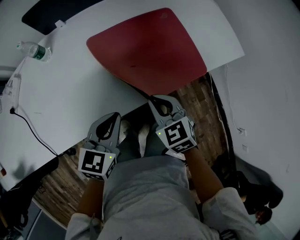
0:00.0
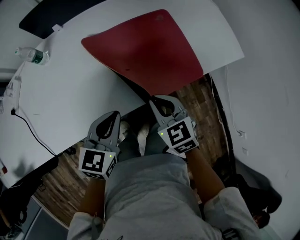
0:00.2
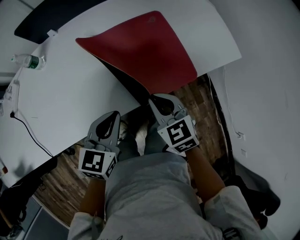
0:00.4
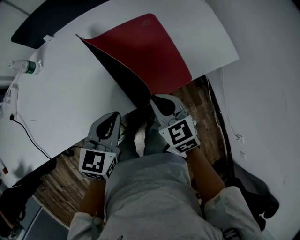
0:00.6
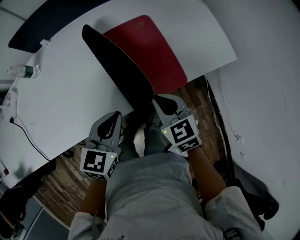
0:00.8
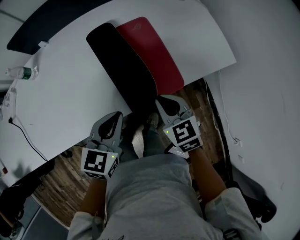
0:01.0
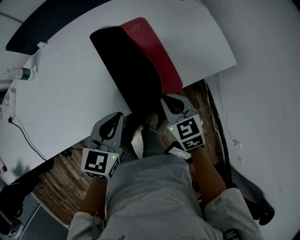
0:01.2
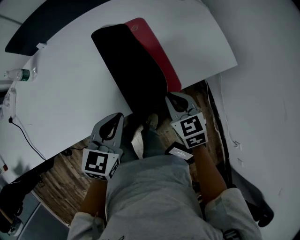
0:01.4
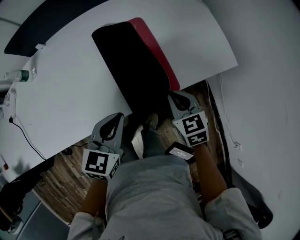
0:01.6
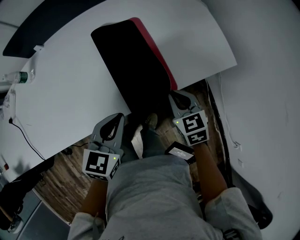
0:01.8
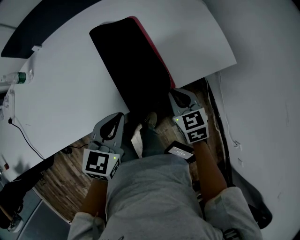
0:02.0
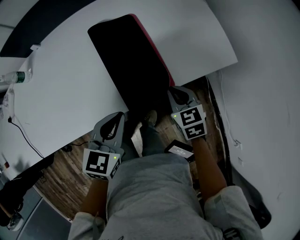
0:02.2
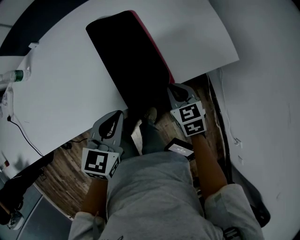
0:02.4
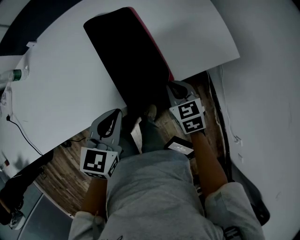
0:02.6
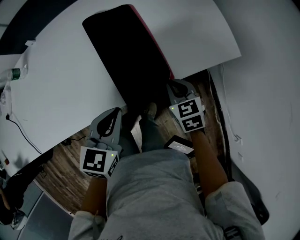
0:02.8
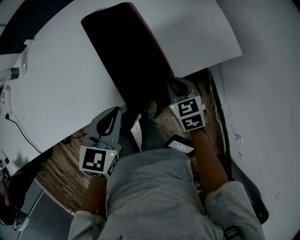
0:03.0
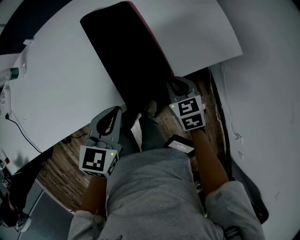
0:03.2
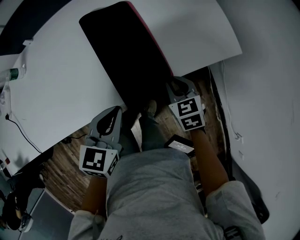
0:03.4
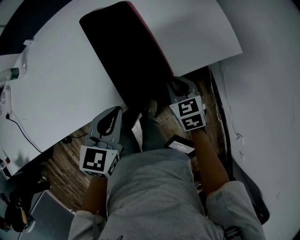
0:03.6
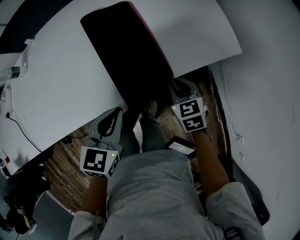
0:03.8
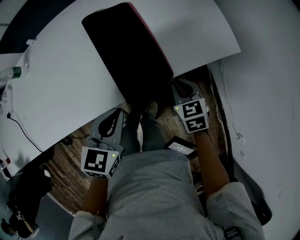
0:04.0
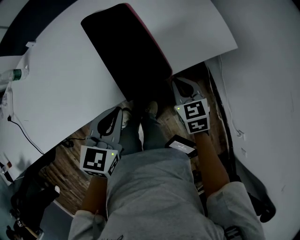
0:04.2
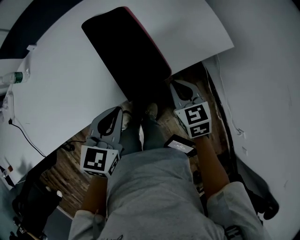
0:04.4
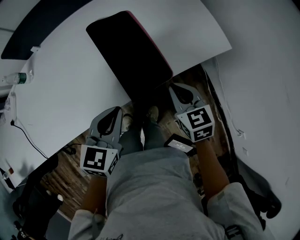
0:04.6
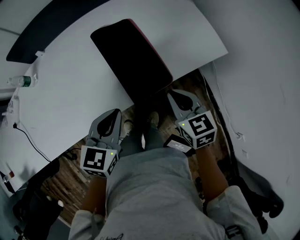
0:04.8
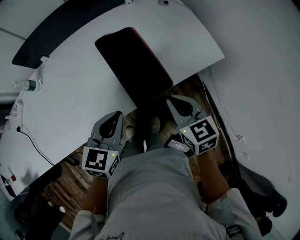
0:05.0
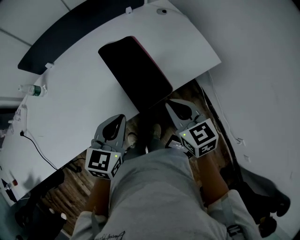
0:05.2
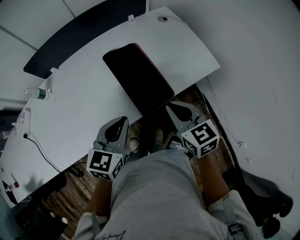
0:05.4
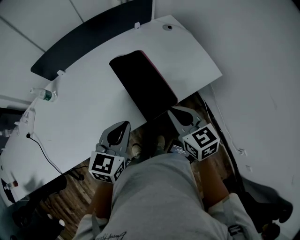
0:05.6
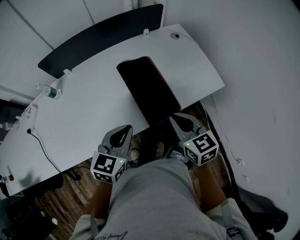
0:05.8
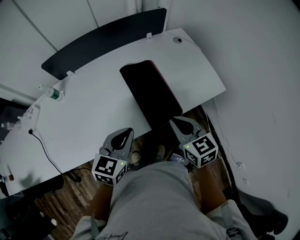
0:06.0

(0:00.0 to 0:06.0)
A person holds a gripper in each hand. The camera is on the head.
0:00.0 - 0:01.6: Both grippers travel together to the right, approximately 20 cm.
0:01.6 - 0:03.0: The right gripper goes roughly 5 cm downward.
0:03.0 - 0:04.4: The right gripper is displaced upward by about 5 cm.
0:04.4 - 0:06.0: The right gripper is displaced upward and to the left by roughly 20 cm. Meanwhile the left gripper moves upward and to the left, some 10 cm.

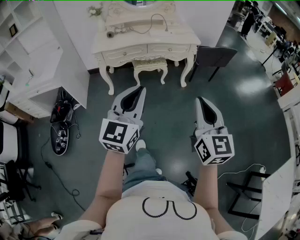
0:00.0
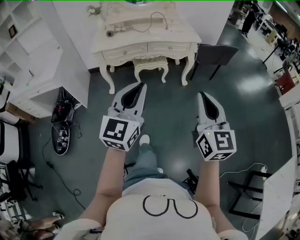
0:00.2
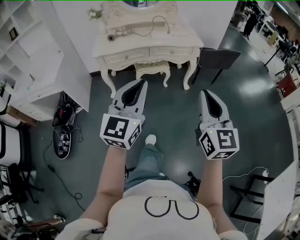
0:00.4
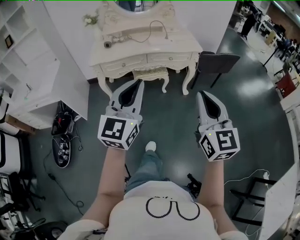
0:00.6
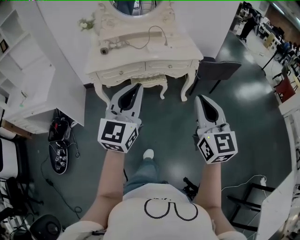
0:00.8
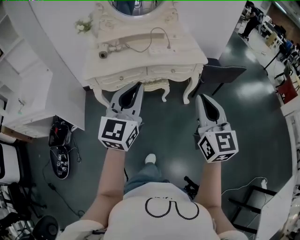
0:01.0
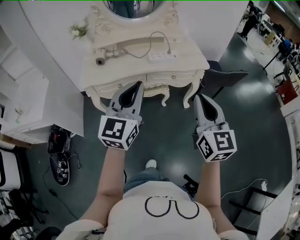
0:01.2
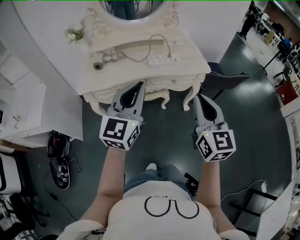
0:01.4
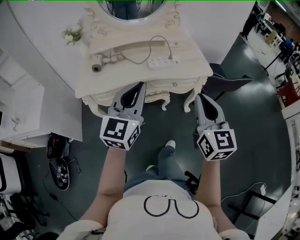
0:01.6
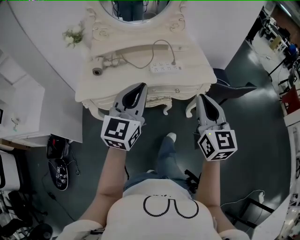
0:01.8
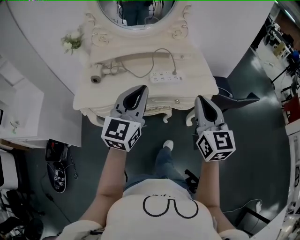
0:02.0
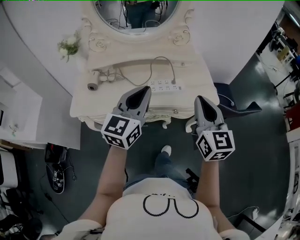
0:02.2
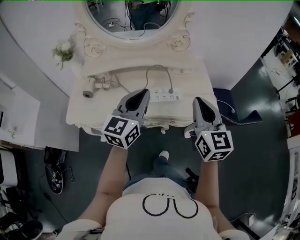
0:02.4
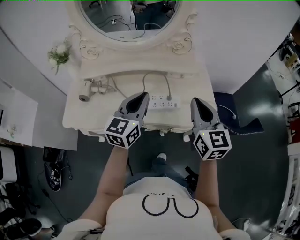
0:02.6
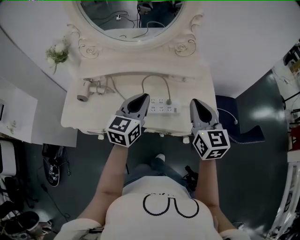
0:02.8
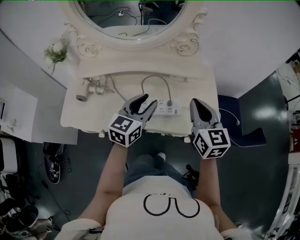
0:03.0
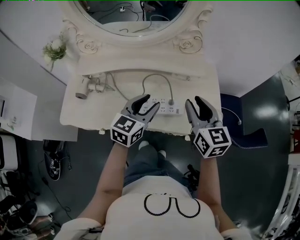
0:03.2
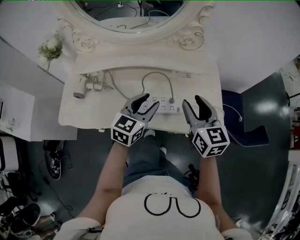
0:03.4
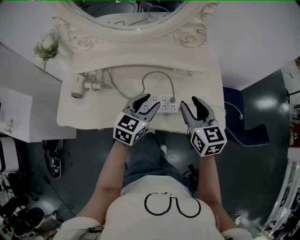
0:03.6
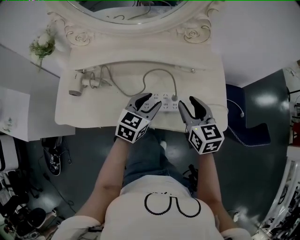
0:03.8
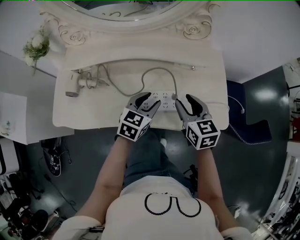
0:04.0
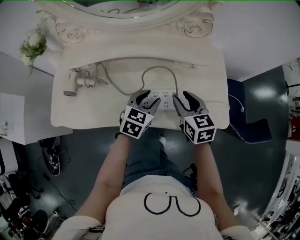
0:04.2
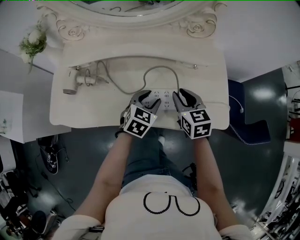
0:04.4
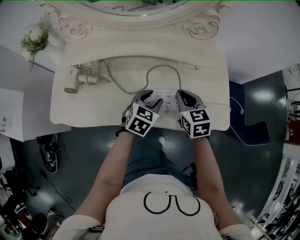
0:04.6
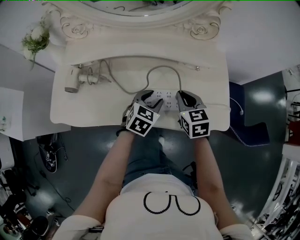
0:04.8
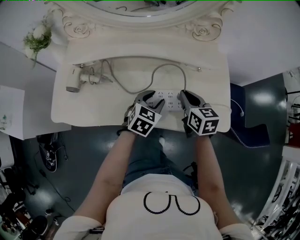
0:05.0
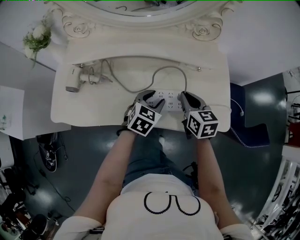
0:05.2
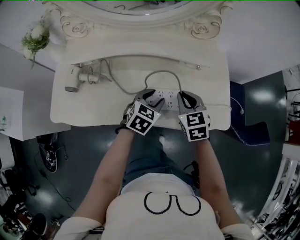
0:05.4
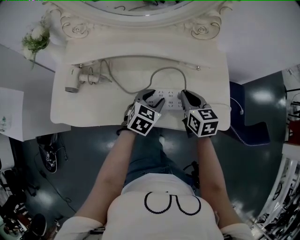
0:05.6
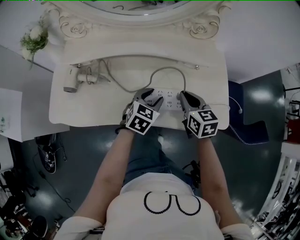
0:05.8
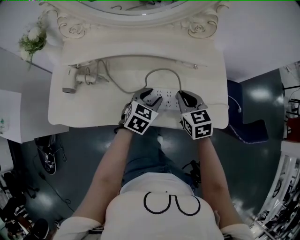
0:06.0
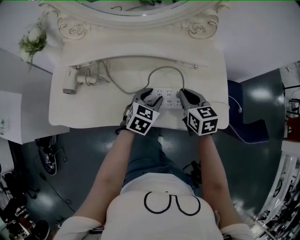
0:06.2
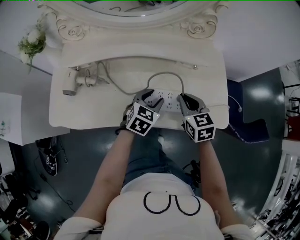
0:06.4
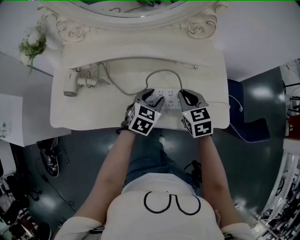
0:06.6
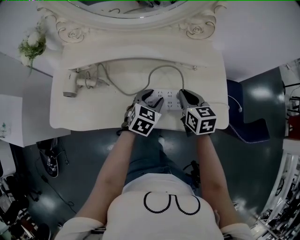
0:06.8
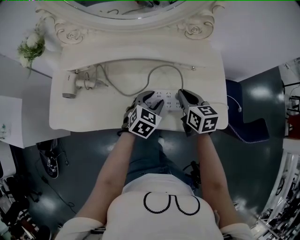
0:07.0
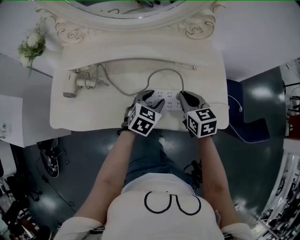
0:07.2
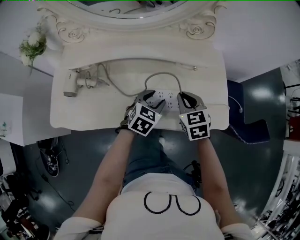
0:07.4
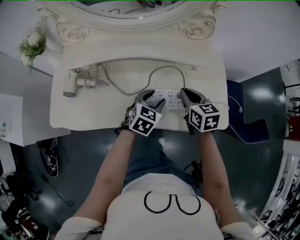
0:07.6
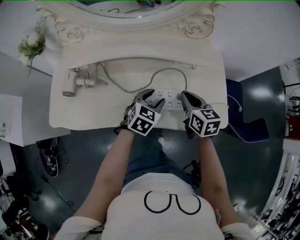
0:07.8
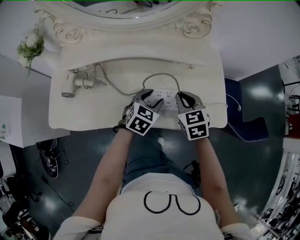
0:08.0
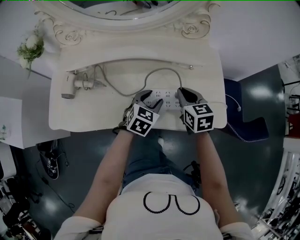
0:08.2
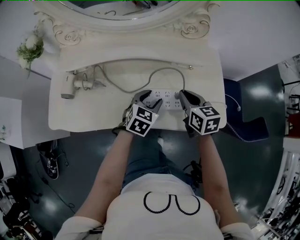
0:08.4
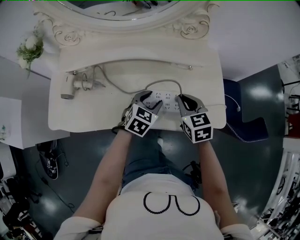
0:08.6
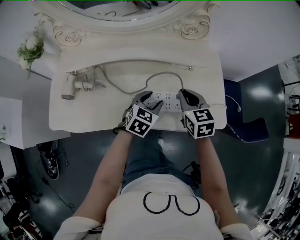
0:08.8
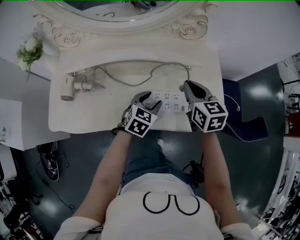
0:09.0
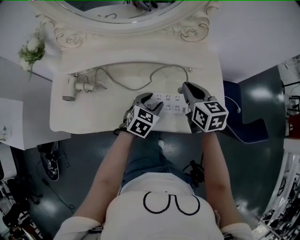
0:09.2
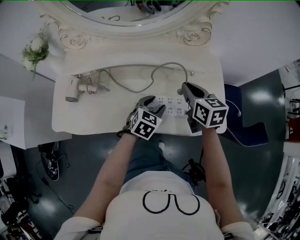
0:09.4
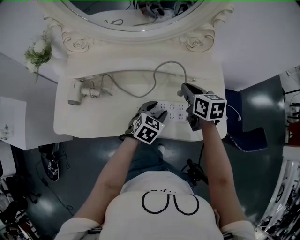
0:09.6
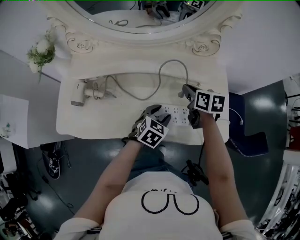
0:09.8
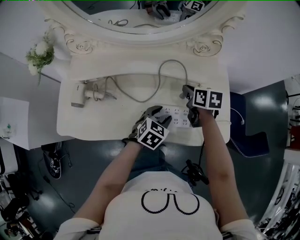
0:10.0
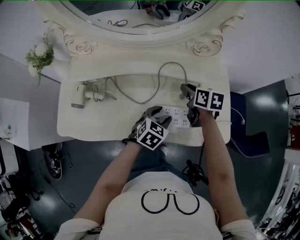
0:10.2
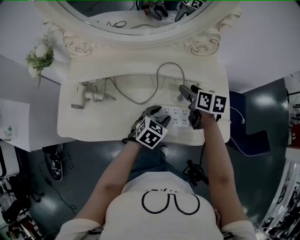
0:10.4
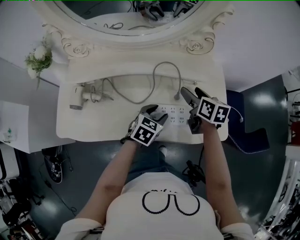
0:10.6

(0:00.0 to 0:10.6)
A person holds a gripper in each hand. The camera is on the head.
0:00.0 - 0:01.6: The two grippers travel together, forward, approximately 50 cm.
0:01.6 - 0:03.0: Both grippers travel together forward, about 40 cm. The left gripper swivels approximately 20 degrees, and opens.
0:03.0 - 0:04.6: The left gripper shifts some 20 cm downward, and rotates approximately 30 degrees. The right gripper moves downward and to the left, roughly 20 cm, swivels some 20 degrees, and opens, then closes once more.
0:04.6 - 0:07.6: The grippers move only a little.
0:07.6 - 0:09.0: The right gripper shifts approximately 5 cm upward.
0:09.0 - 0:10.6: The right gripper changes its angle by roughly 20 degrees, and opens up.

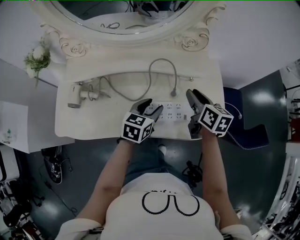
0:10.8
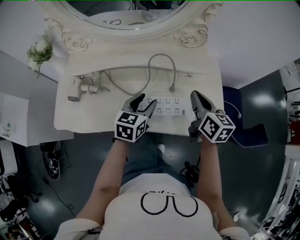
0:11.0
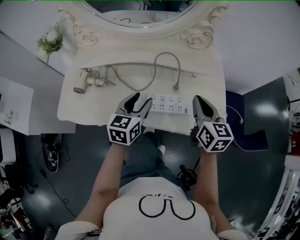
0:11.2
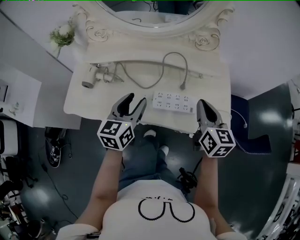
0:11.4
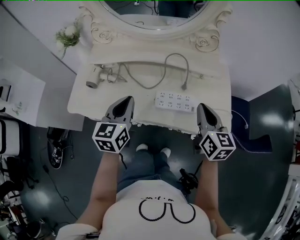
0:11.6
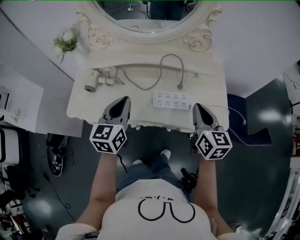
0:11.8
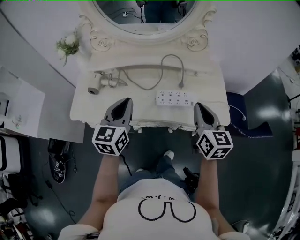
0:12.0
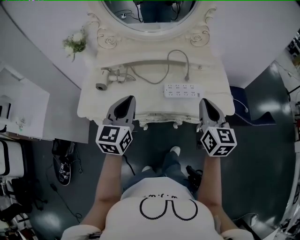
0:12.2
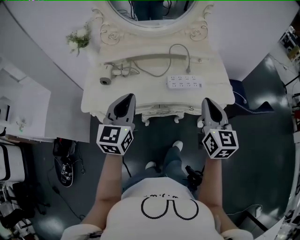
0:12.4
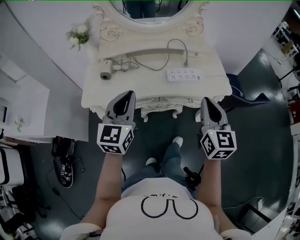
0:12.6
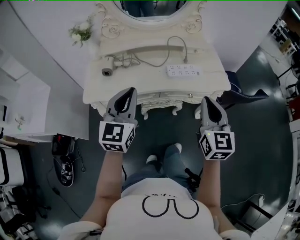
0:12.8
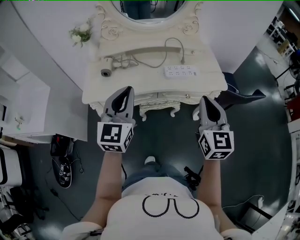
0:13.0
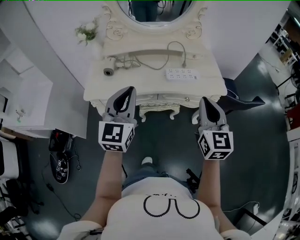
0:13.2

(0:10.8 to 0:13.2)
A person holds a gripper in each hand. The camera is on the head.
0:10.8 - 0:12.0: The left gripper heads upward, to the left and backward, covering about 25 cm, changes its angle by roughly 30 degrees, and closes up, while the right gripper shifts about 20 cm backward and upward, changes its angle by roughly 20 degrees, and closes up.
0:12.0 - 0:13.2: Both grippers move backward and upward, some 25 cm. The right gripper turns by about 20 degrees.

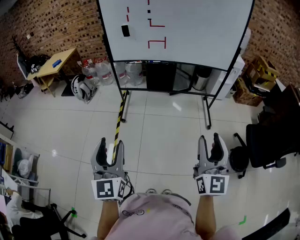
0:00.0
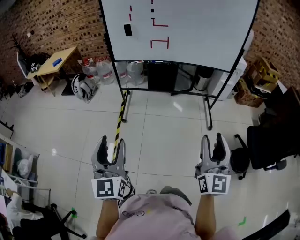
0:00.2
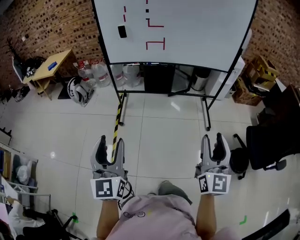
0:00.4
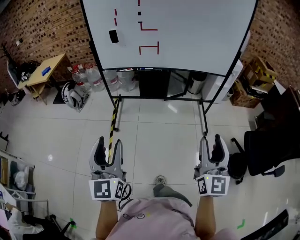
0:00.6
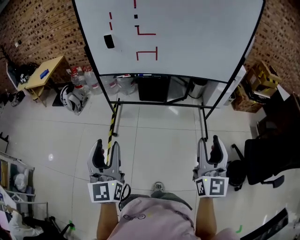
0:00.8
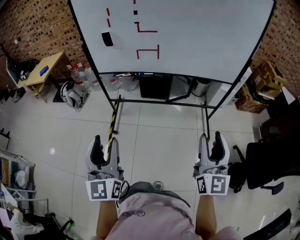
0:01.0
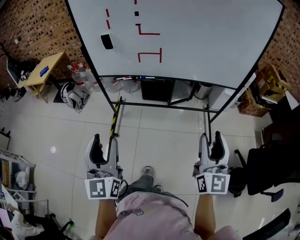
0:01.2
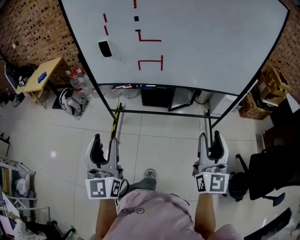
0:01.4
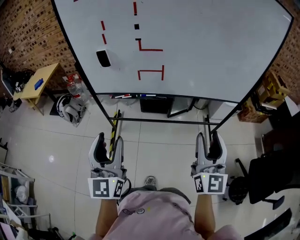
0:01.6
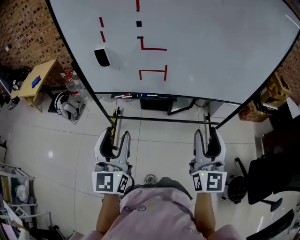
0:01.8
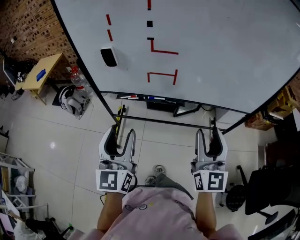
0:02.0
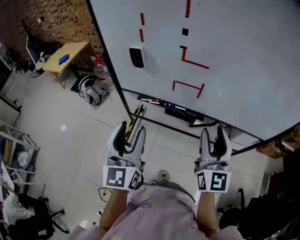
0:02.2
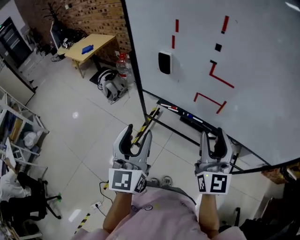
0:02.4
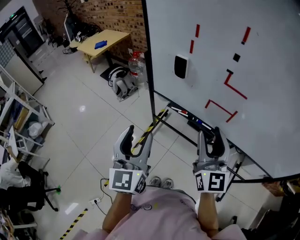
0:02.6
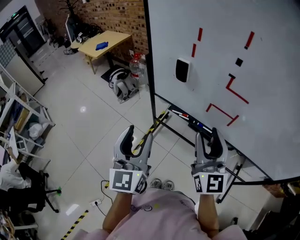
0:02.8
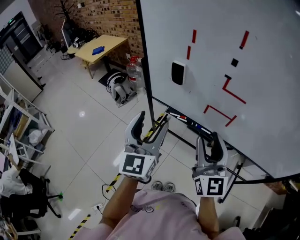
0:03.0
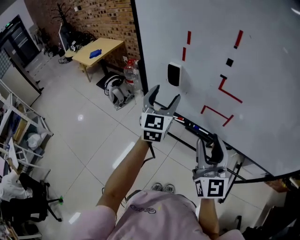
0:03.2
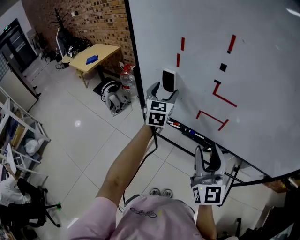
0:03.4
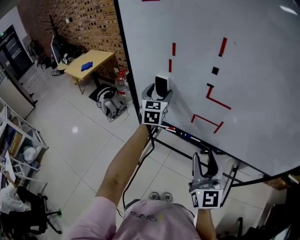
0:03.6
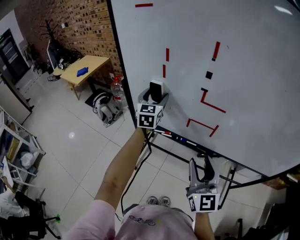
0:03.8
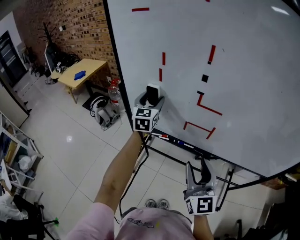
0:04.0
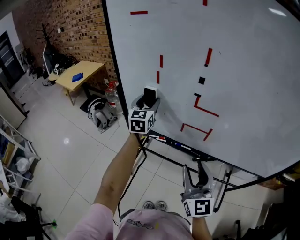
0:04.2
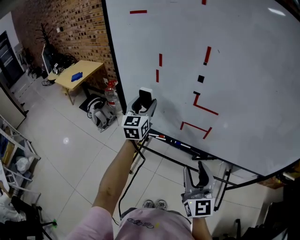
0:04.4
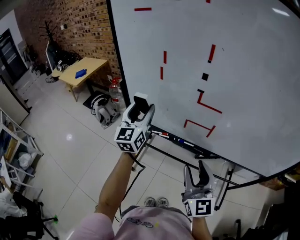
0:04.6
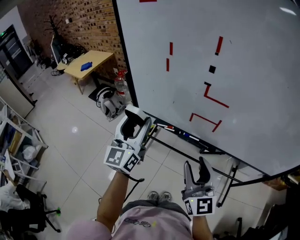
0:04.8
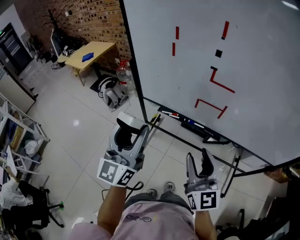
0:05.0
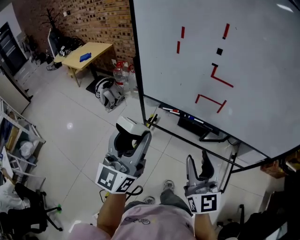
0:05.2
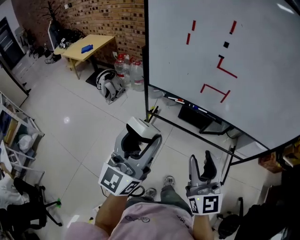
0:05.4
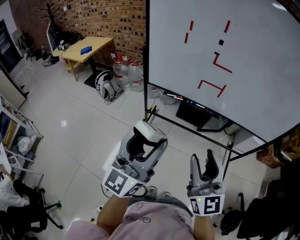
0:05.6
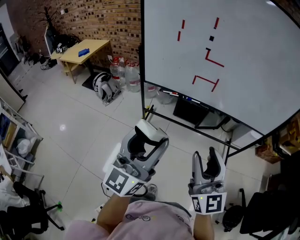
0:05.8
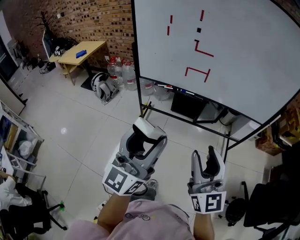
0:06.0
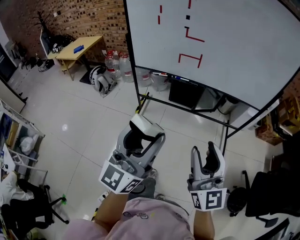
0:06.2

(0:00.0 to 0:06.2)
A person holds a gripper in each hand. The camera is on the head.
0:00.0 - 0:01.6: Both grippers are carried forward, approximately 50 cm.
0:01.6 - 0:03.2: The left gripper changes place by some 35 cm; the right gripper moves roughly 30 cm, and turns by some 30 degrees.
0:03.2 - 0:04.6: The left gripper travels forward and back again, roughly 10 cm each way; the right gripper moves roughly 5 cm.
0:04.6 - 0:06.2: Both grippers are carried backward, approximately 50 cm. The left gripper swivels some 30 degrees.
